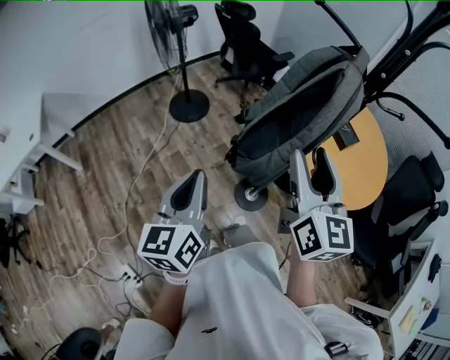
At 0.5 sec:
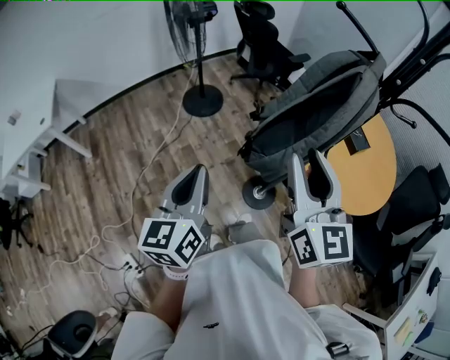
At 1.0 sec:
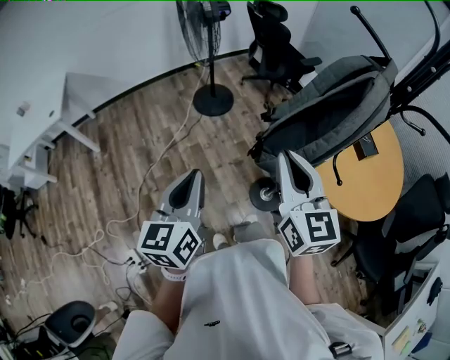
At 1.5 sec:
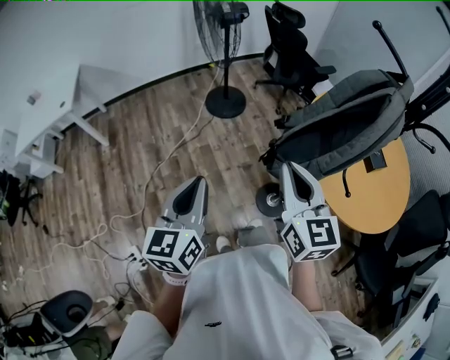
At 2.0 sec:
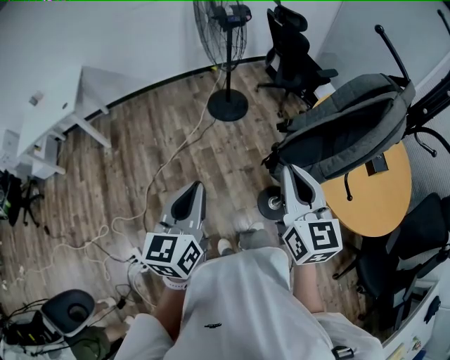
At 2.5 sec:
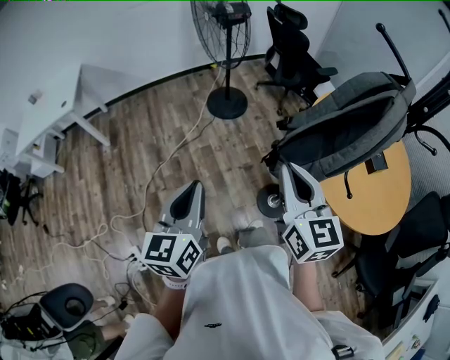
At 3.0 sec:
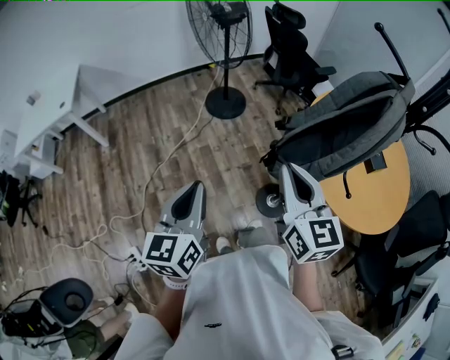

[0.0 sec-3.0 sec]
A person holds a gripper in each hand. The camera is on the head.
0.0 sec to 1.5 sec: The left gripper heads to the left, covering roughly 10 cm, while the right gripper heads to the left and downward, covering some 15 cm, changes its angle by roughly 20 degrees, and closes.
1.5 sec to 3.0 sec: The grippers stay close to where they were, moving slightly.

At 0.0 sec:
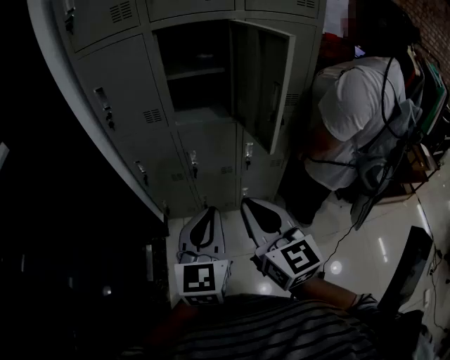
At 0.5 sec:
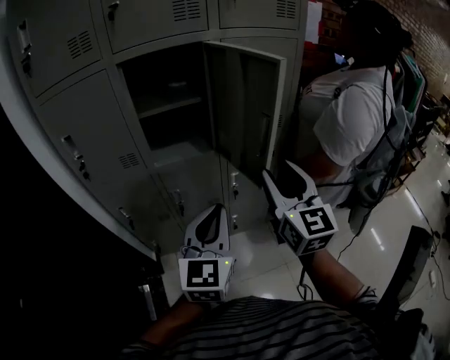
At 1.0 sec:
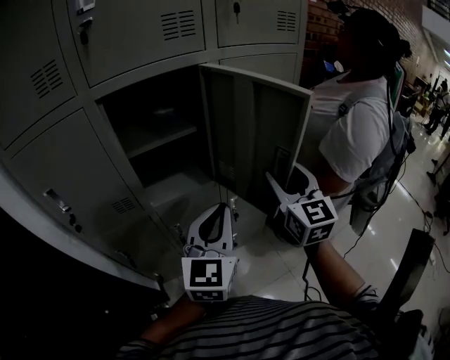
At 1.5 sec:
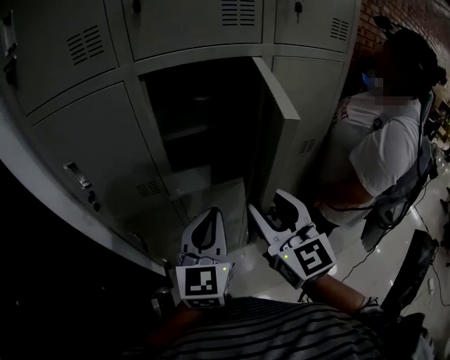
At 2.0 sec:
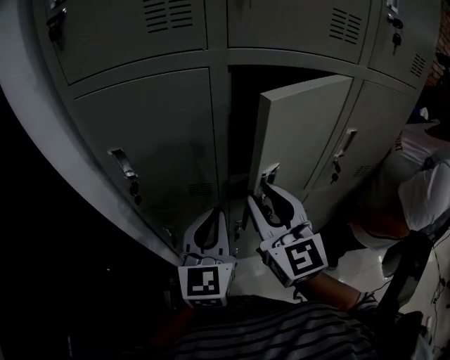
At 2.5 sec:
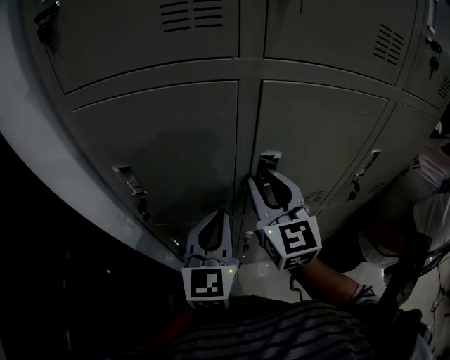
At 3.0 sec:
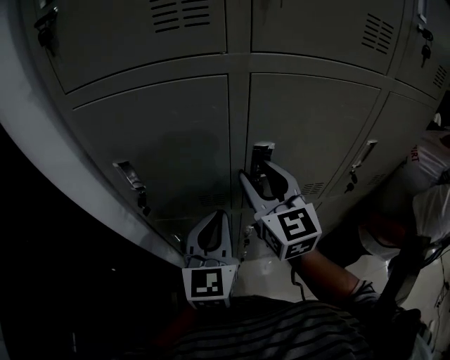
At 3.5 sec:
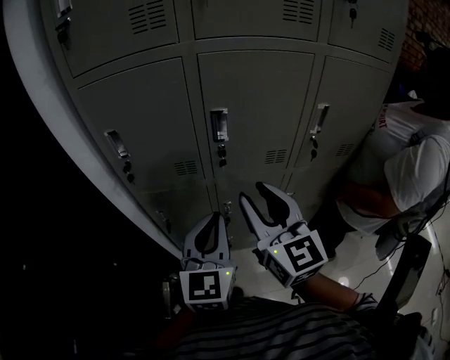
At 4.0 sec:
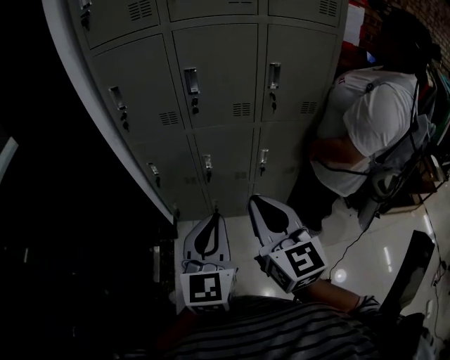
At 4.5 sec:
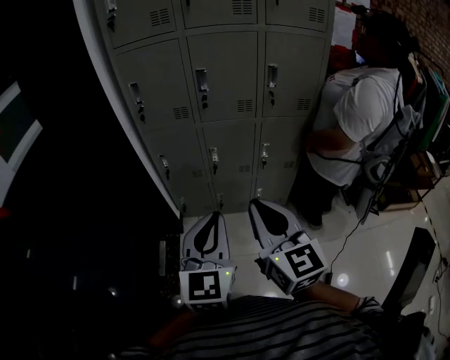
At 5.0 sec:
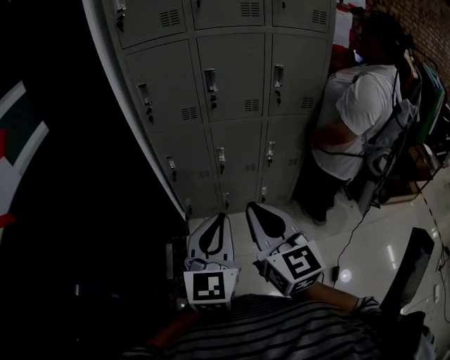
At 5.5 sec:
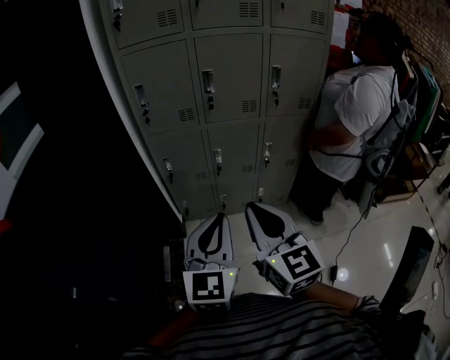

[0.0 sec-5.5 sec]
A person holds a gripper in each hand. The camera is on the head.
0.0 sec to 2.0 sec: The left gripper moves approximately 40 cm. The right gripper shifts by approximately 40 cm, and opens its fingers.
2.0 sec to 3.5 sec: Both grippers travel together backward, some 10 cm.
3.5 sec to 5.5 sec: Both grippers travel together backward, some 35 cm. The right gripper closes up.

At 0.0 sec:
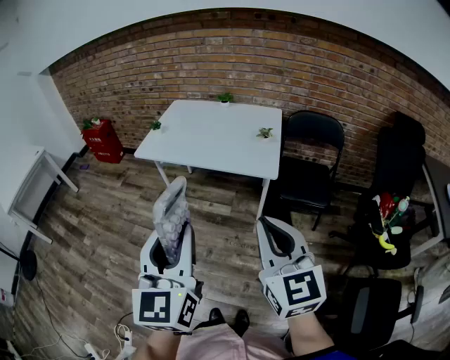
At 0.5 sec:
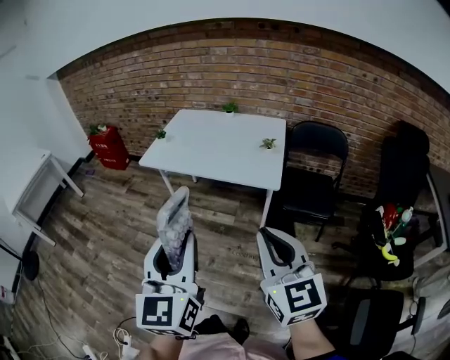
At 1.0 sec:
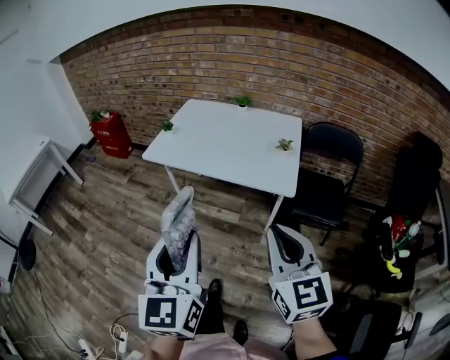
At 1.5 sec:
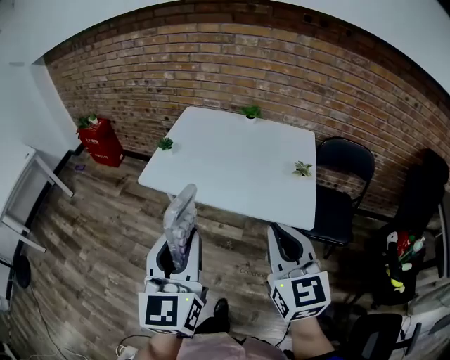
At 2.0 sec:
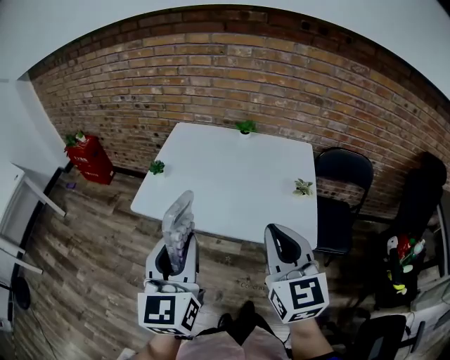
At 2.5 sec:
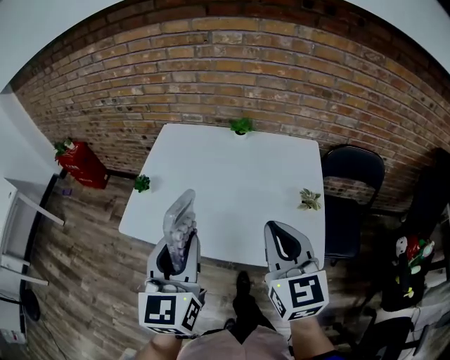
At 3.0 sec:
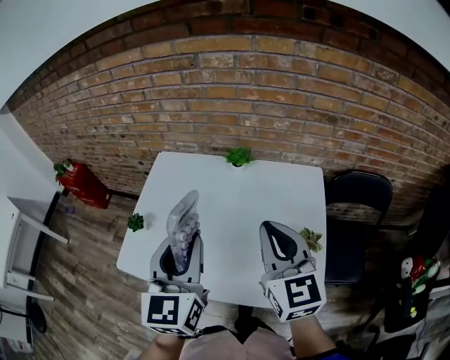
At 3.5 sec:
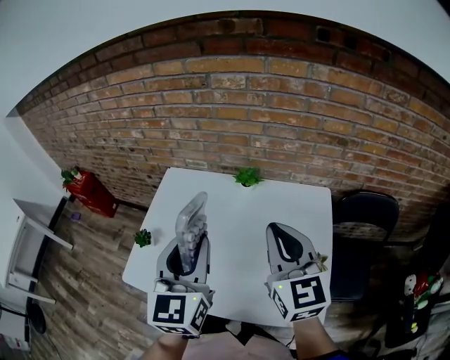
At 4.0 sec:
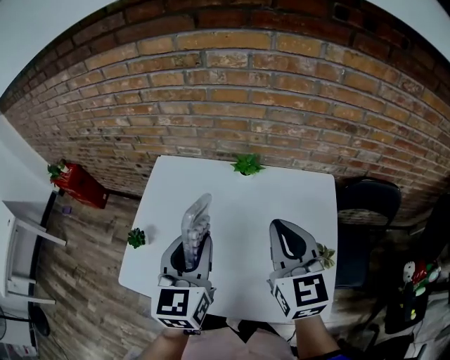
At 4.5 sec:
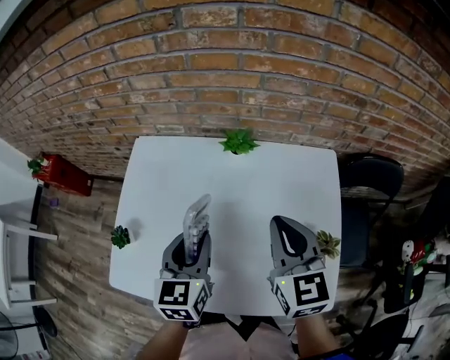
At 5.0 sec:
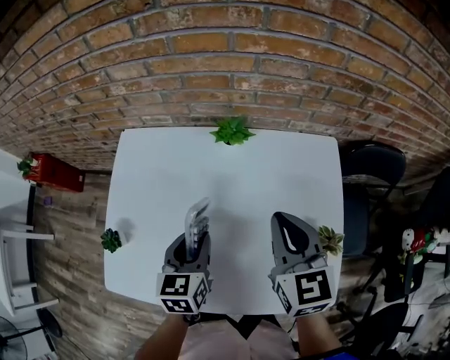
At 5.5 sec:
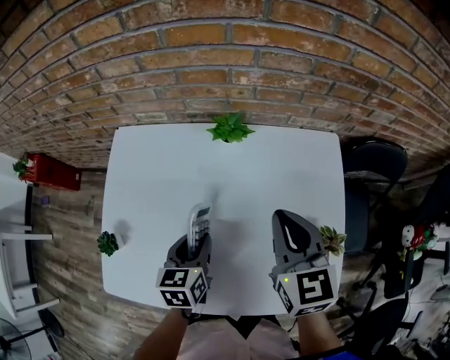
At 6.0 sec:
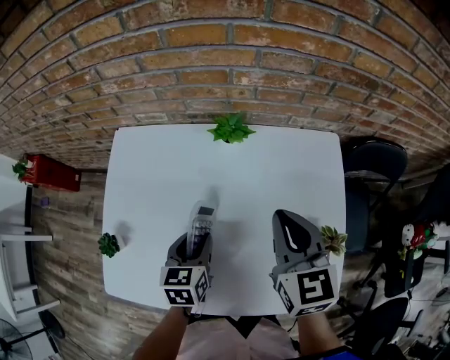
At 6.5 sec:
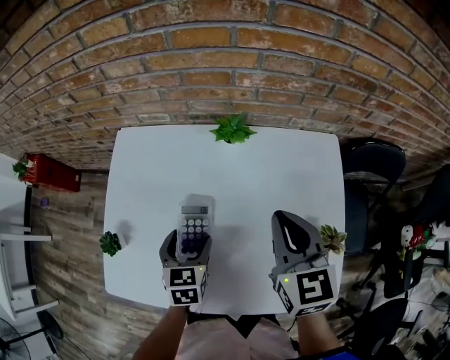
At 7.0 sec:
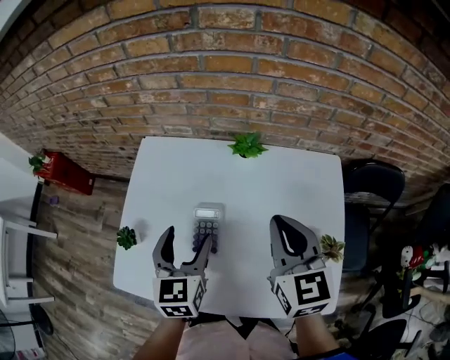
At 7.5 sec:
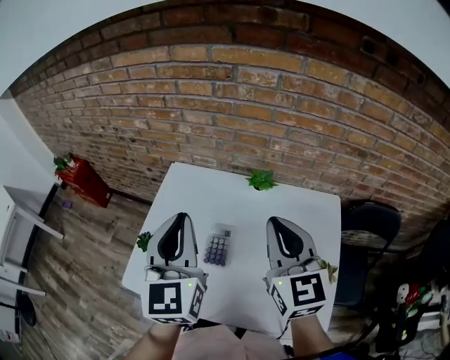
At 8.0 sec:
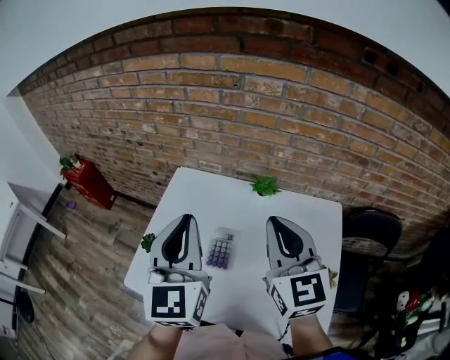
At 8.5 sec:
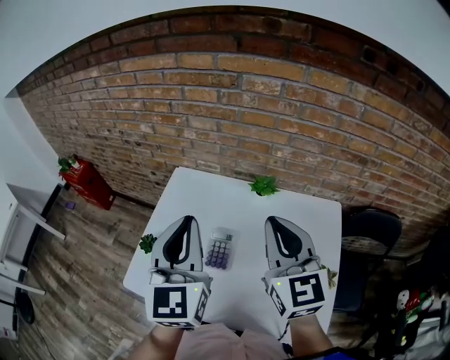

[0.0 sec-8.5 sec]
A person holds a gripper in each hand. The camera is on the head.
0.0 sec to 2.0 sec: Both grippers move forward, roughly 35 cm.
2.0 sec to 4.0 sec: The two grippers go some 35 cm forward.
4.0 sec to 6.5 sec: The right gripper travels downward by about 10 cm. Meanwhile the left gripper is displaced downward by some 25 cm, tilts its fingers roughly 30 degrees downward, and opens up.
6.5 sec to 8.5 sec: The left gripper goes about 35 cm upward, points its fingers some 40 degrees further upward, and closes up. Meanwhile the right gripper heads upward and to the left, covering some 20 cm, and changes its angle by approximately 30 degrees.

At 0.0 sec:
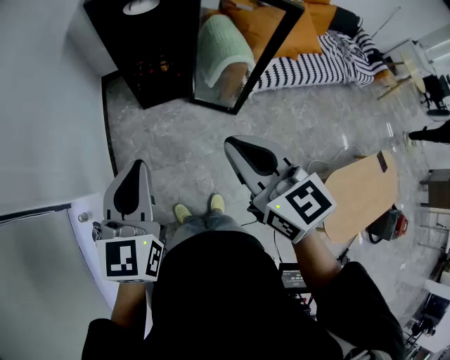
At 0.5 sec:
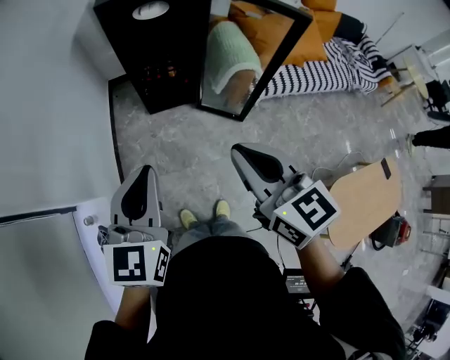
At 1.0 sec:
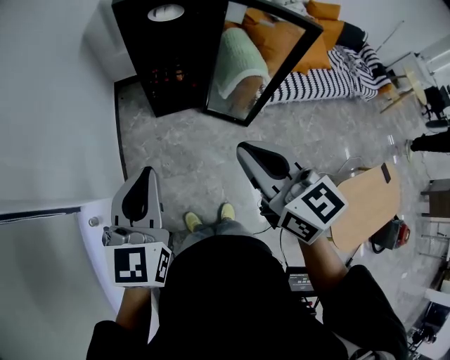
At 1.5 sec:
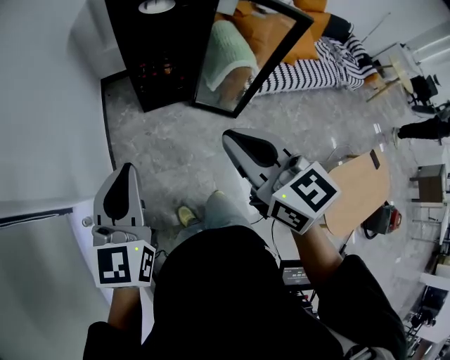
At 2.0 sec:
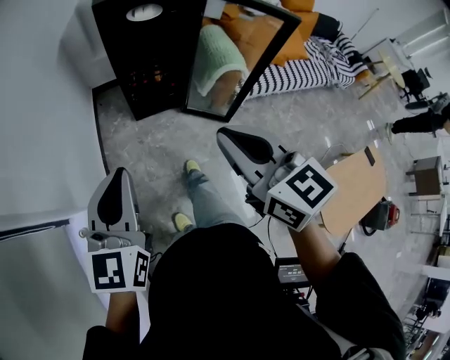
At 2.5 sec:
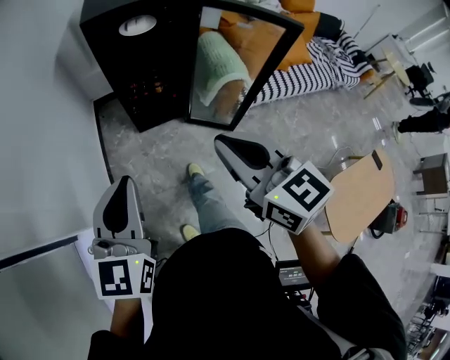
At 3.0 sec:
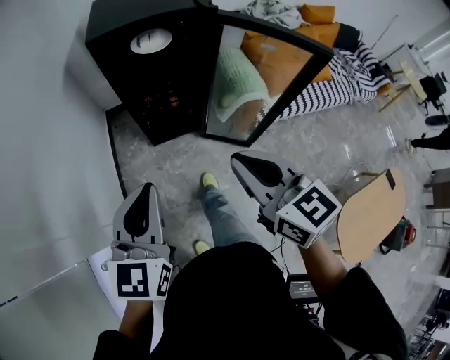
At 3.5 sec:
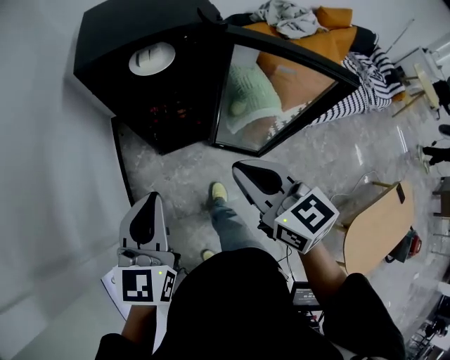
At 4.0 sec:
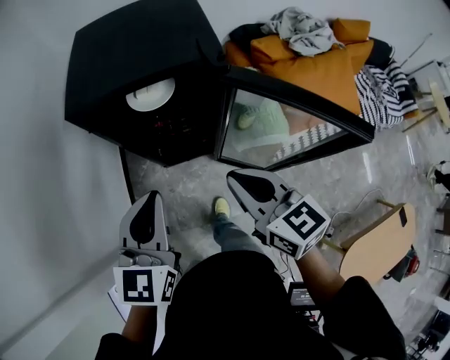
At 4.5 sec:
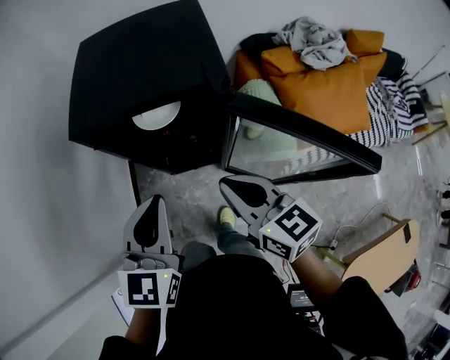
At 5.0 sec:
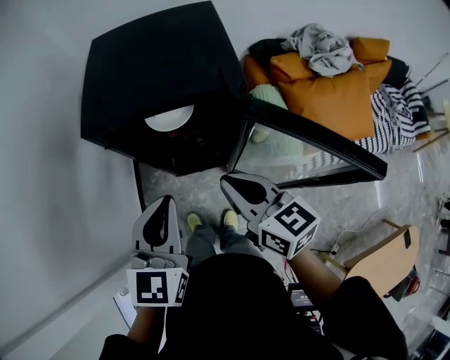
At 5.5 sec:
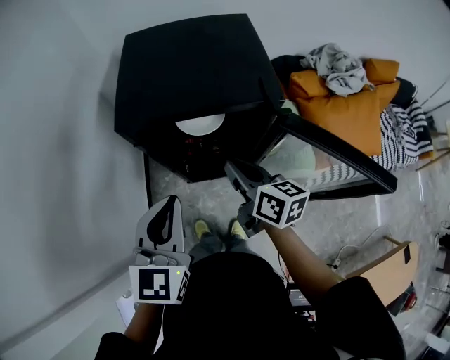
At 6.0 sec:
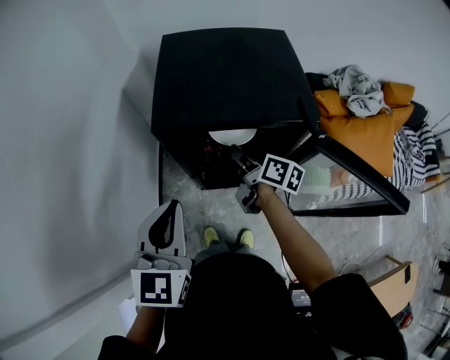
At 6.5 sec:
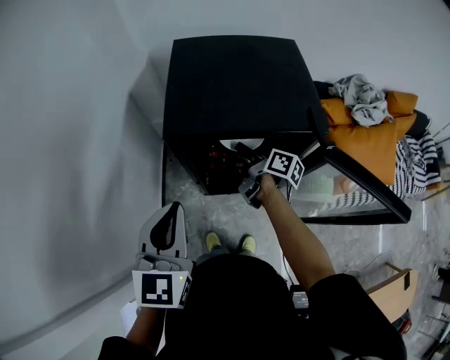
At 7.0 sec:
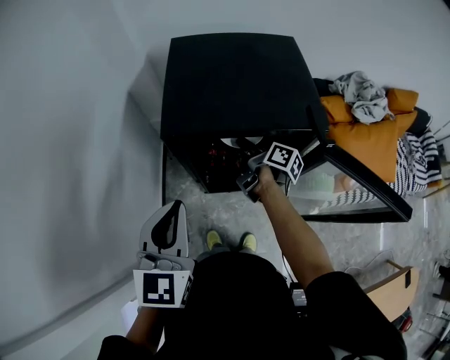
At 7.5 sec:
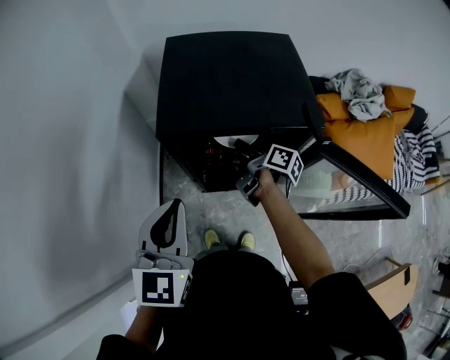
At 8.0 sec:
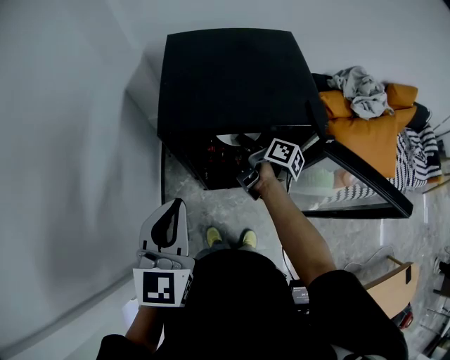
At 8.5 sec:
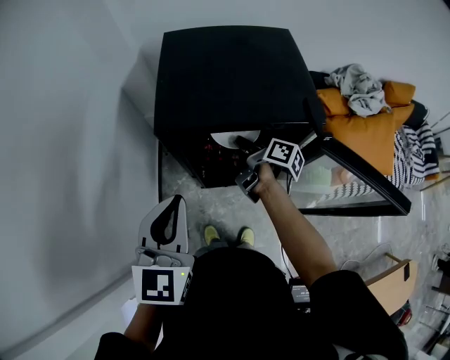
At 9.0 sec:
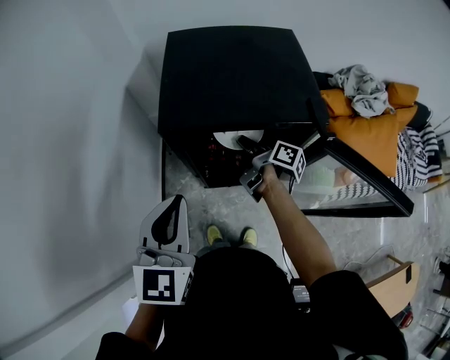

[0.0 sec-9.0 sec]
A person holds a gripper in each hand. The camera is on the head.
0.0 sec to 2.0 sec: Both grippers move to the left, approximately 10 cm.
2.0 sec to 4.5 sec: Both grippers are carried forward, about 40 cm.
4.5 sec to 7.0 sec: The right gripper goes some 30 cm forward and downward, rolls clockwise, seen from behind, by some 60 degrees, and opens its fingers. Meanwhile the left gripper shifts roughly 15 cm to the left and forward.
7.0 sec to 9.0 sec: The grippers stay close to where they were, moving slightly.
